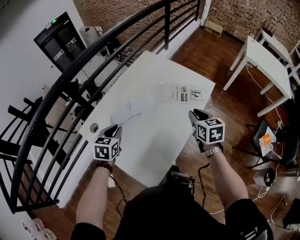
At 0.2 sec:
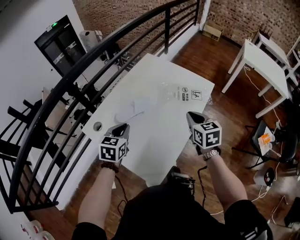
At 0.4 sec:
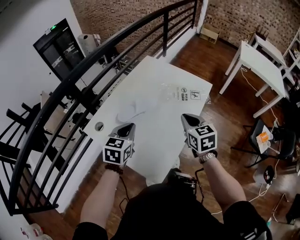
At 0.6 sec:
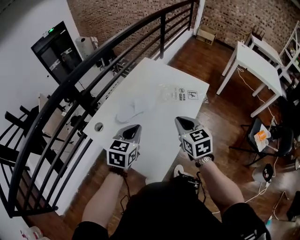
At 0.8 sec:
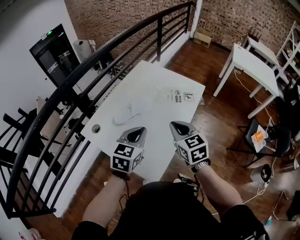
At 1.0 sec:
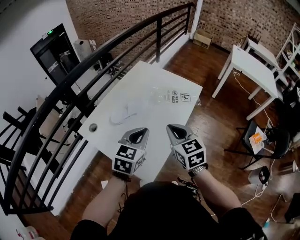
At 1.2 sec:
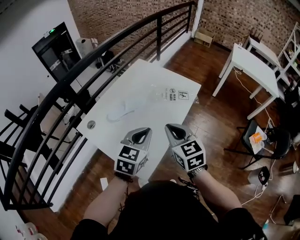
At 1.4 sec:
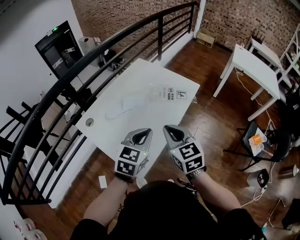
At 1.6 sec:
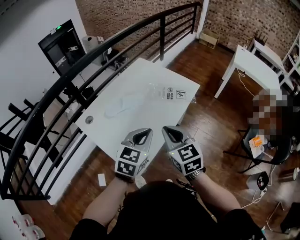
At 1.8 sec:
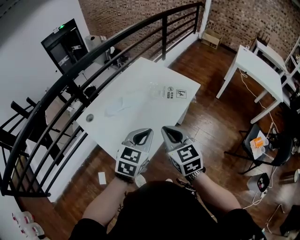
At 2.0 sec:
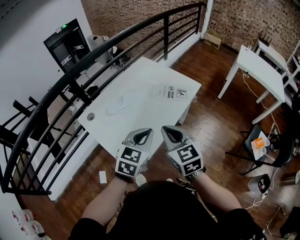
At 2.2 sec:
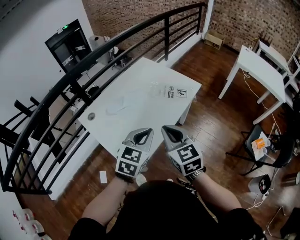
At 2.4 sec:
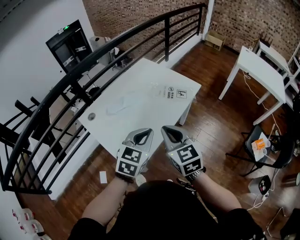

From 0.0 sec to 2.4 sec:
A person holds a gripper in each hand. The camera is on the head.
From 0.0 sec to 1.2 sec: The right gripper travels backward, upward and to the left by approximately 20 cm. Meanwhile the left gripper travels to the right, upward and backward by some 25 cm, and turns by roughly 20 degrees.
From 1.2 sec to 2.4 sec: The right gripper ends up roughly 5 cm from where it was. The left gripper travels to the right by roughly 5 cm.

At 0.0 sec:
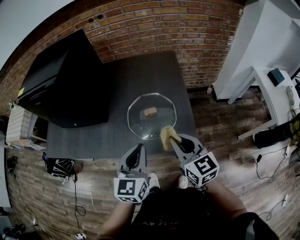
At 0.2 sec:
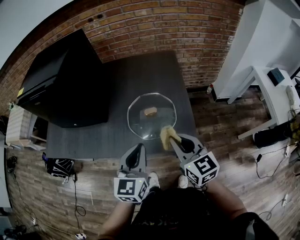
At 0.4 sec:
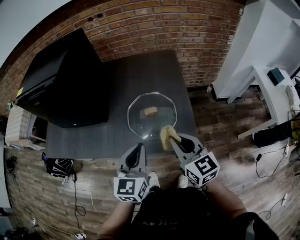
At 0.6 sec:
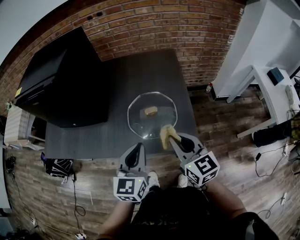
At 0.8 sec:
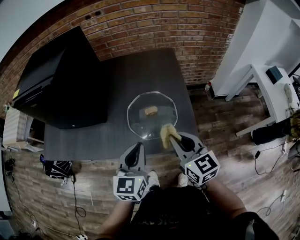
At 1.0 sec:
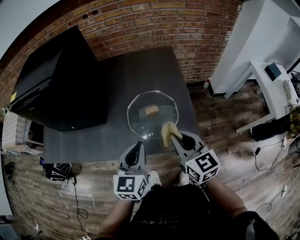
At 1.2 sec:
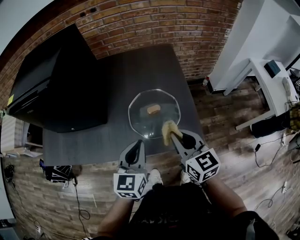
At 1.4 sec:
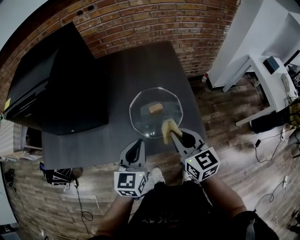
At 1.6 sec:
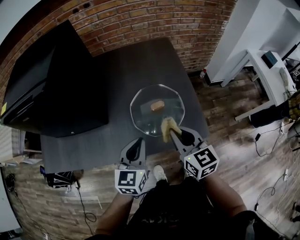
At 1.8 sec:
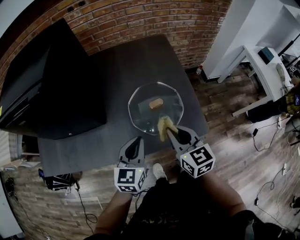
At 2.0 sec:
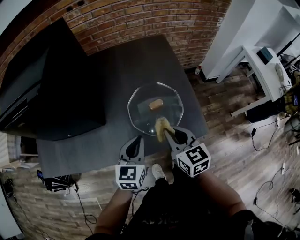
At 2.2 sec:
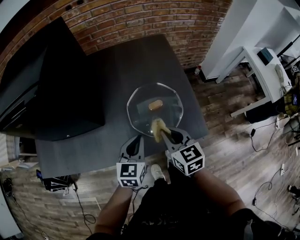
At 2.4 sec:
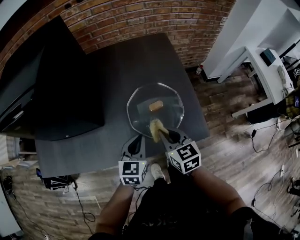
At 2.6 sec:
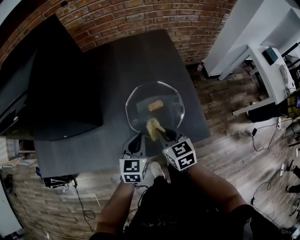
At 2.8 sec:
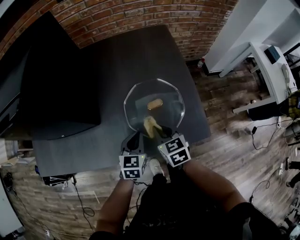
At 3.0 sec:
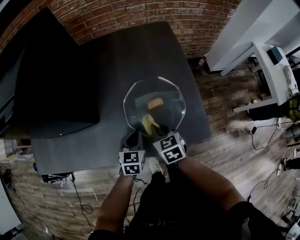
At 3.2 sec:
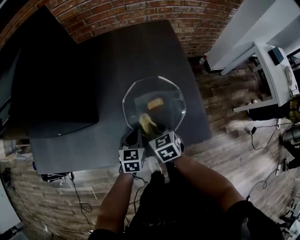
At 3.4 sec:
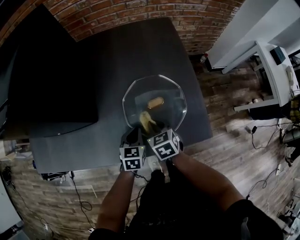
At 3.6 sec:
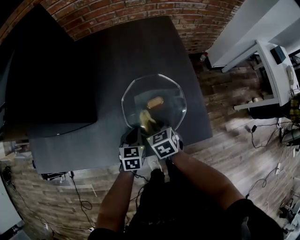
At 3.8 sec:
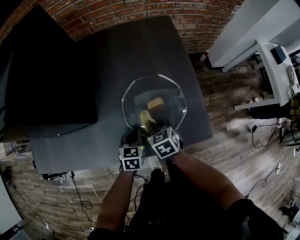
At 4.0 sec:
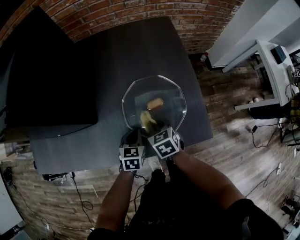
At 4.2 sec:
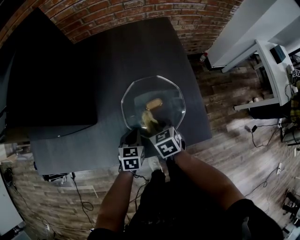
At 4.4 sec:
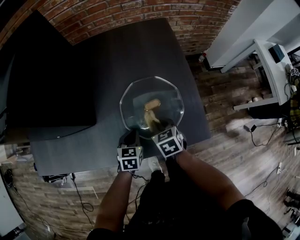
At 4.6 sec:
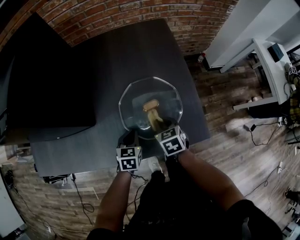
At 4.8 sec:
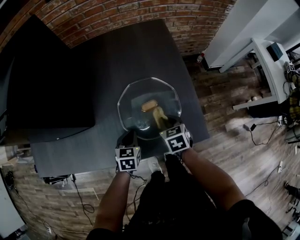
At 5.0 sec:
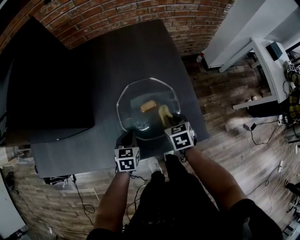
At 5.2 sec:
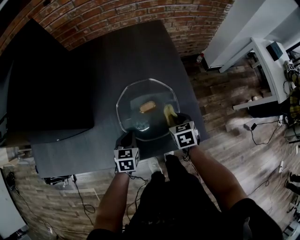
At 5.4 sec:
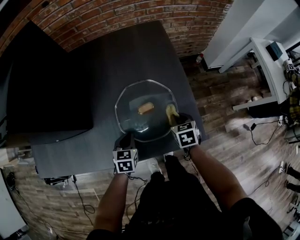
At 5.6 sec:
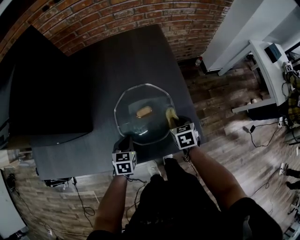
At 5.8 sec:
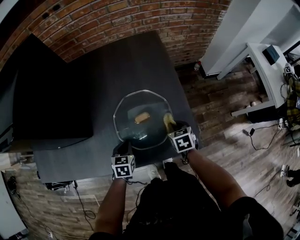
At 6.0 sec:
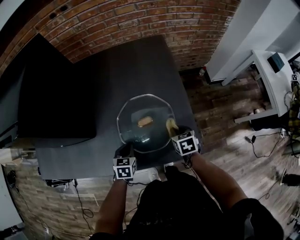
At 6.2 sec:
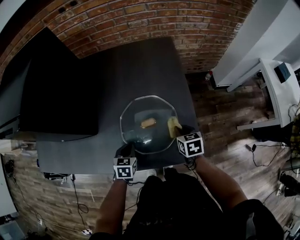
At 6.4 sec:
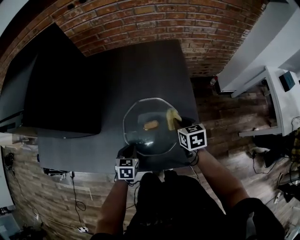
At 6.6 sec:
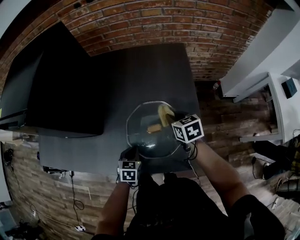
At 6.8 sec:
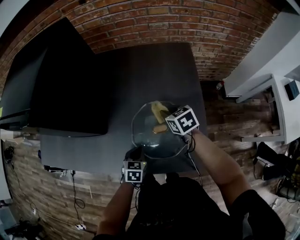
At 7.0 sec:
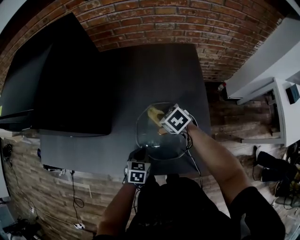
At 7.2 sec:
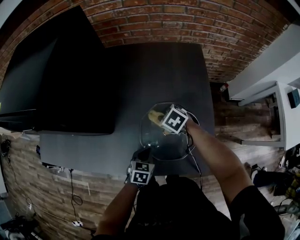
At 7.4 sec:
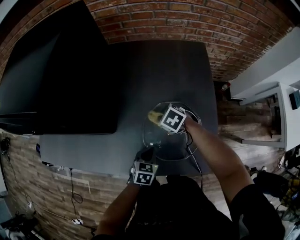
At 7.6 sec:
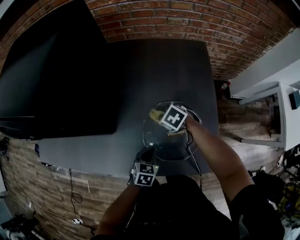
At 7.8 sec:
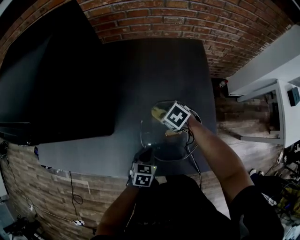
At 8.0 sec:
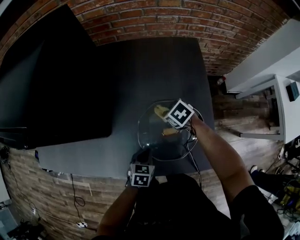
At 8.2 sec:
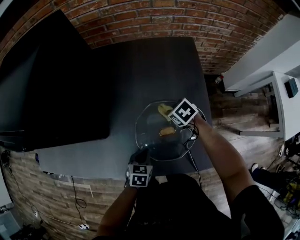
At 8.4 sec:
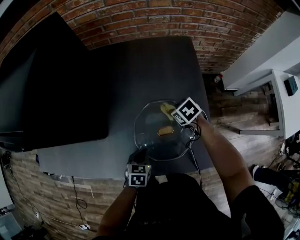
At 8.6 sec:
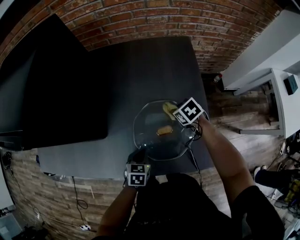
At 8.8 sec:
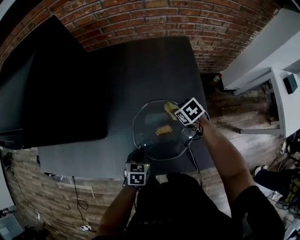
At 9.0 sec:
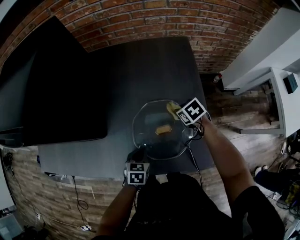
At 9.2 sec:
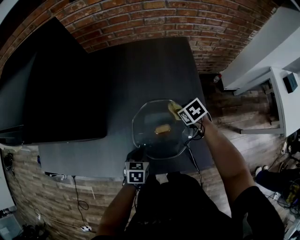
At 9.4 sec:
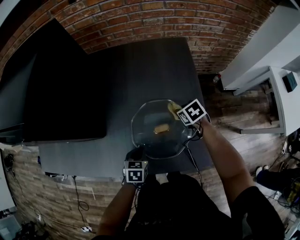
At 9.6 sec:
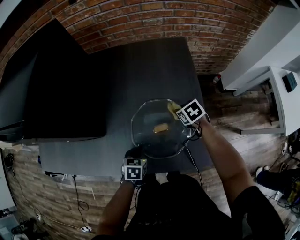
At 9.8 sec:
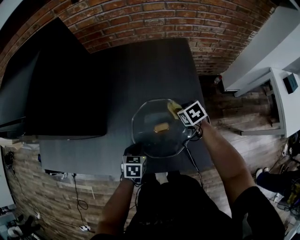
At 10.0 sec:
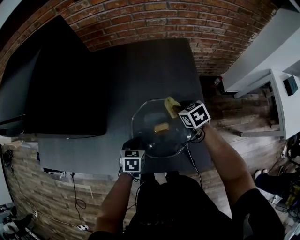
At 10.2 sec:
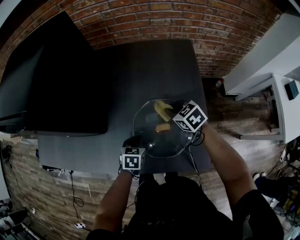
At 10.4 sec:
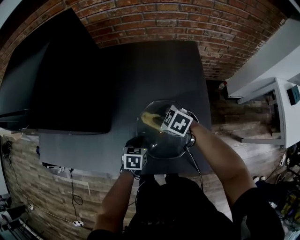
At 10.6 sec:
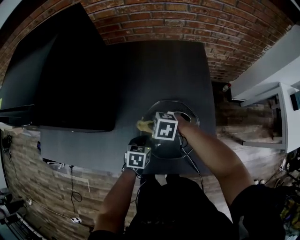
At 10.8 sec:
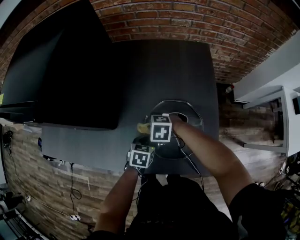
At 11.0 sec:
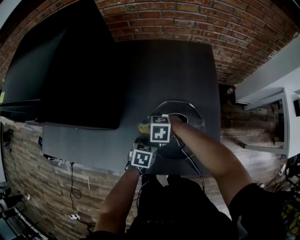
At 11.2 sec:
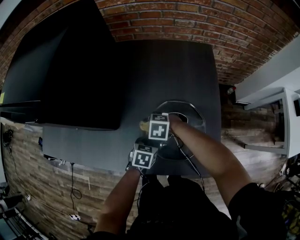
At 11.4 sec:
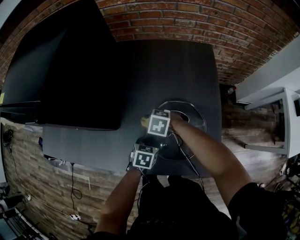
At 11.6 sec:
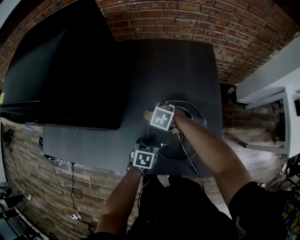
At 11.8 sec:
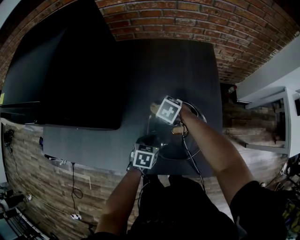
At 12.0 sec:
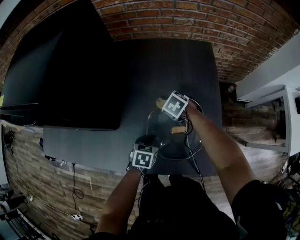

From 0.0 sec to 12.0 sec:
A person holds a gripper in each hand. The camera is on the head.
From 0.0 sec to 1.6 sec: The left gripper shifts some 10 cm to the left, forward and downward. The right gripper shifts some 10 cm to the left and forward.
From 1.6 sec to 3.0 sec: Both grippers move downward and forward, some 20 cm. The right gripper turns by about 20 degrees.
From 3.0 sec to 4.4 sec: The grippers make only small movements.
From 4.4 sec to 6.0 sec: The right gripper moves to the right, roughly 15 cm.
From 6.0 sec to 7.6 sec: The right gripper reaches approximately 10 cm upward, then returns, and changes its angle by approximately 50 degrees.
From 7.6 sec to 9.0 sec: The right gripper is displaced to the right by approximately 15 cm, and rotates approximately 30 degrees.
From 9.0 sec to 10.4 sec: The right gripper shifts approximately 15 cm to the left and upward, and rotates about 40 degrees.
From 10.4 sec to 12.0 sec: The right gripper heads forward and downward, covering some 10 cm, reaches approximately 10 cm to the left, then returns, and swivels some 20 degrees.

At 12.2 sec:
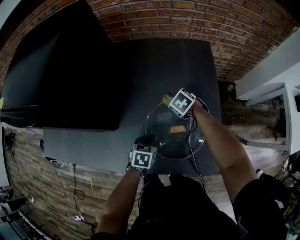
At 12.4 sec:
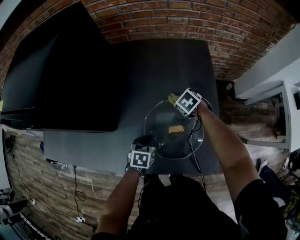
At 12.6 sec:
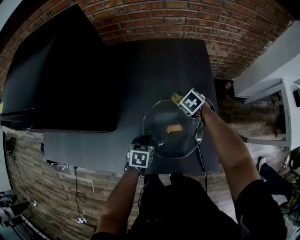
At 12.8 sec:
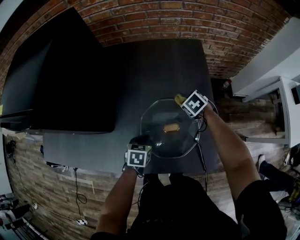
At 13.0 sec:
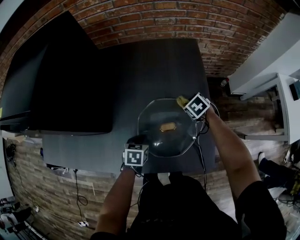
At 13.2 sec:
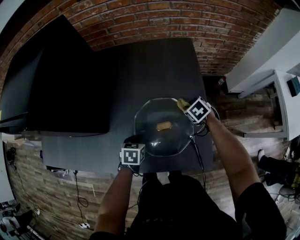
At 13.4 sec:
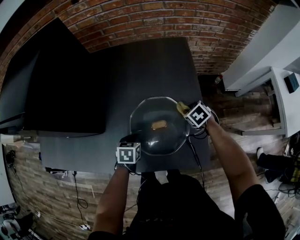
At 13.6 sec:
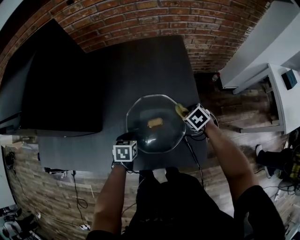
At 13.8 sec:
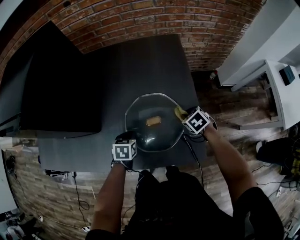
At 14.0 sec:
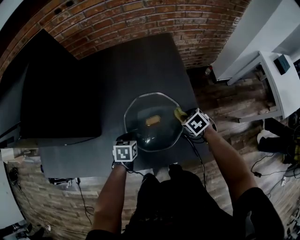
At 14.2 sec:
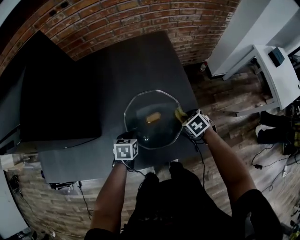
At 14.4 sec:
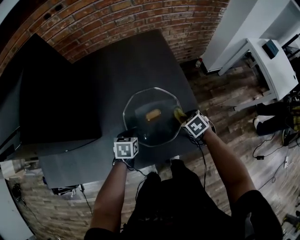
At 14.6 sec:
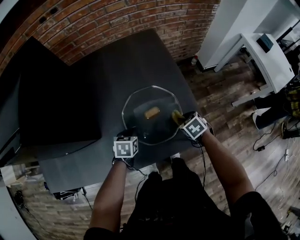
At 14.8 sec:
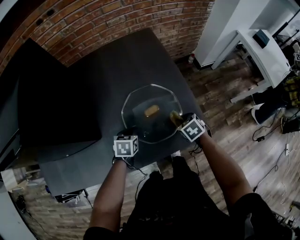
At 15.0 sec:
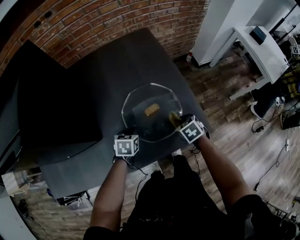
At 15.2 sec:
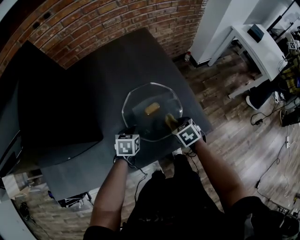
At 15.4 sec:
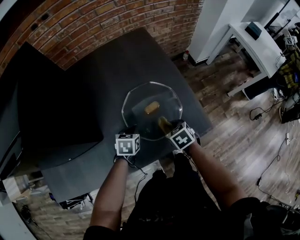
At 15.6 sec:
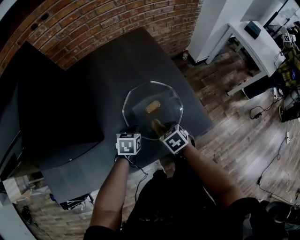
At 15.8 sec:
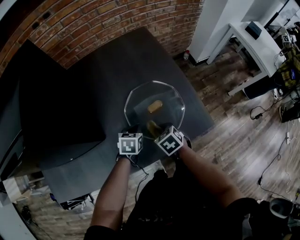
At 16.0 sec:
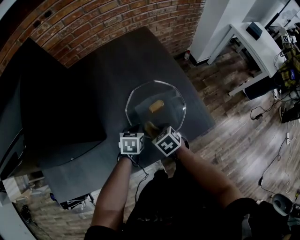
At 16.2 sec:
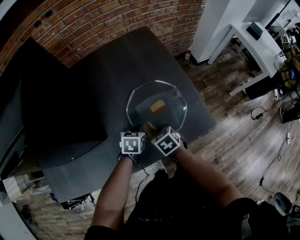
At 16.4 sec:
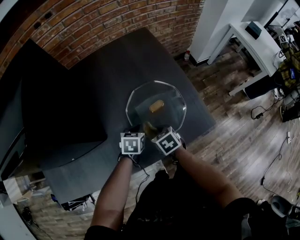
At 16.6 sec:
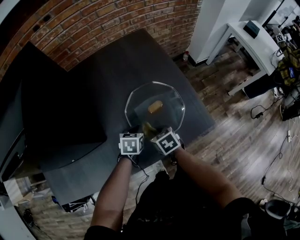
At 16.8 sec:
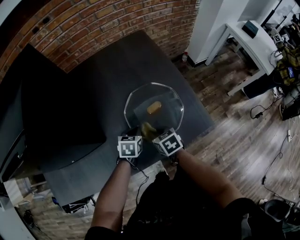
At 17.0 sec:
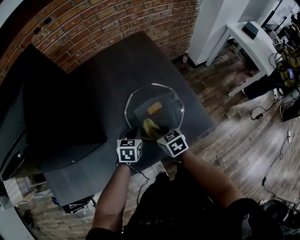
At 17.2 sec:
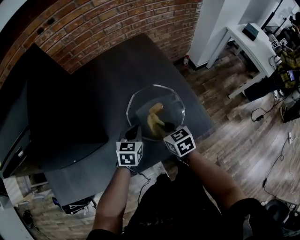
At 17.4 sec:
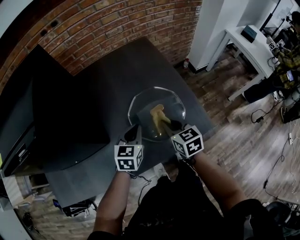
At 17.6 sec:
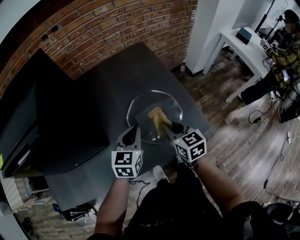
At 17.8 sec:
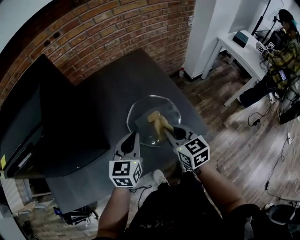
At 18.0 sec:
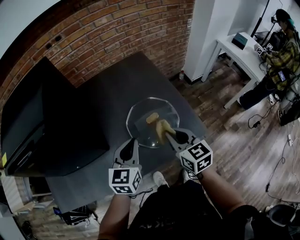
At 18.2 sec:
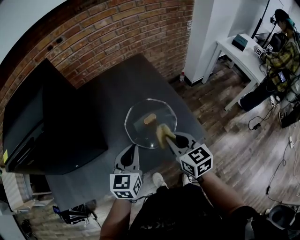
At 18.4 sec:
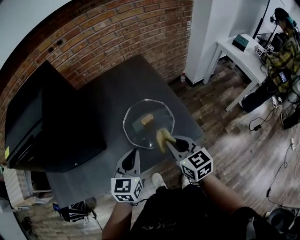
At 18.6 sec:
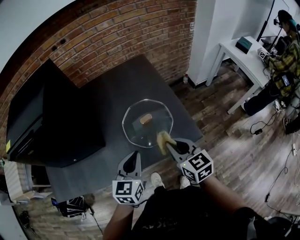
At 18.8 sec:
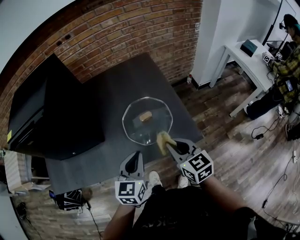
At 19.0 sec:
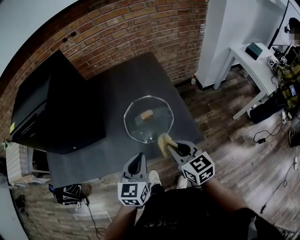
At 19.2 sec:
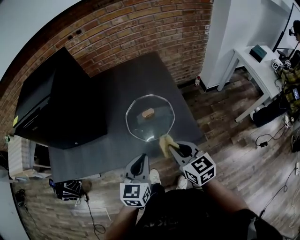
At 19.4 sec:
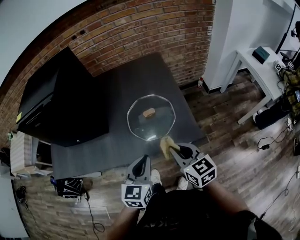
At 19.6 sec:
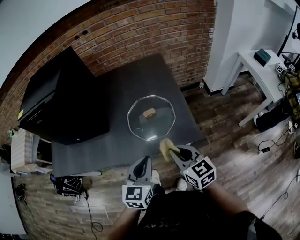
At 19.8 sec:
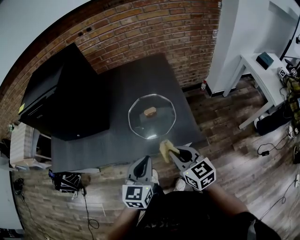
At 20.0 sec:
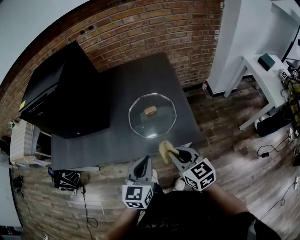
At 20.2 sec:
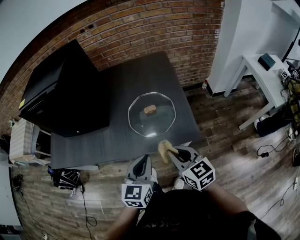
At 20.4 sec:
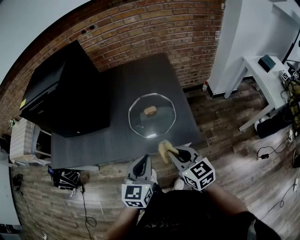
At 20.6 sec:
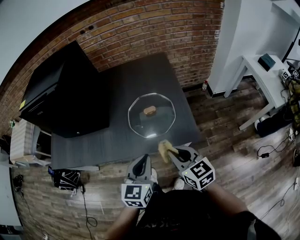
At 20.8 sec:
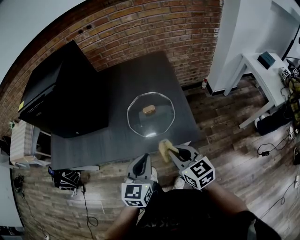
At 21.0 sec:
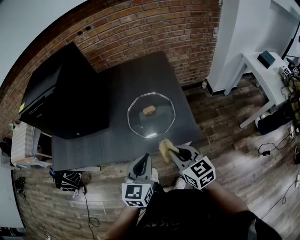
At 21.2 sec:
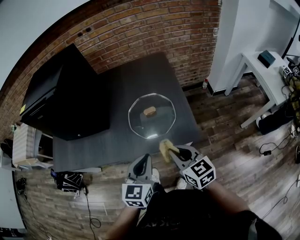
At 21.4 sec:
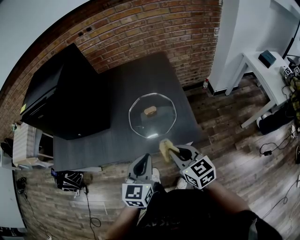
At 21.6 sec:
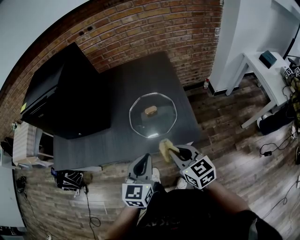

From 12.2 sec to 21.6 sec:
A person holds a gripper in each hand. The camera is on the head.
From 12.2 sec to 13.8 sec: The right gripper moves to the right and backward, roughly 20 cm.
From 13.8 sec to 15.4 sec: The left gripper turns by roughly 20 degrees. Meanwhile the right gripper goes some 15 cm backward and to the left, and turns by approximately 30 degrees.
From 15.4 sec to 17.0 sec: The right gripper heads to the left, covering roughly 10 cm.
From 17.0 sec to 18.4 sec: The left gripper heads upward and backward, covering some 20 cm, and rotates approximately 30 degrees; the right gripper heads upward, to the right and backward, covering about 20 cm, and rotates about 20 degrees.
From 18.4 sec to 20.0 sec: The left gripper travels backward and to the right by approximately 15 cm. Meanwhile the right gripper heads backward, covering roughly 10 cm.
From 20.0 sec to 21.6 sec: Both grippers stay put.
